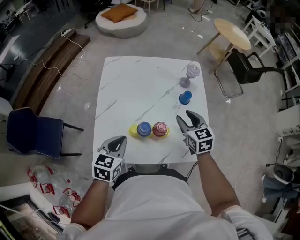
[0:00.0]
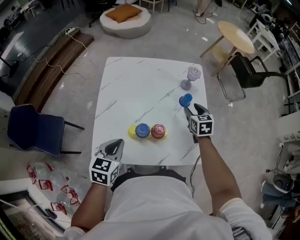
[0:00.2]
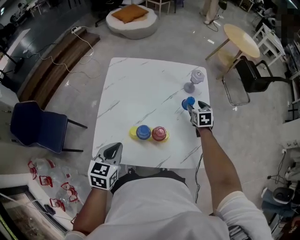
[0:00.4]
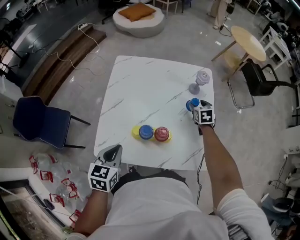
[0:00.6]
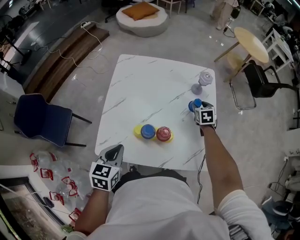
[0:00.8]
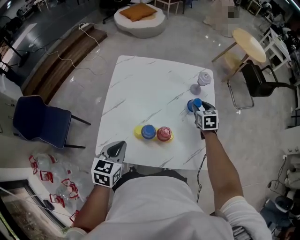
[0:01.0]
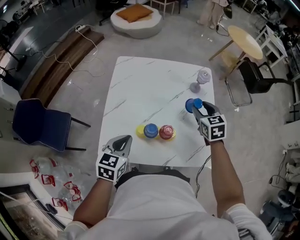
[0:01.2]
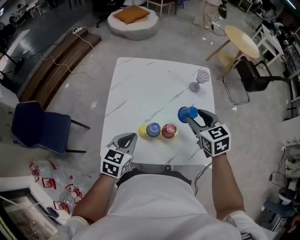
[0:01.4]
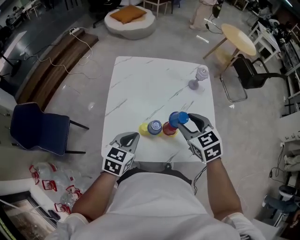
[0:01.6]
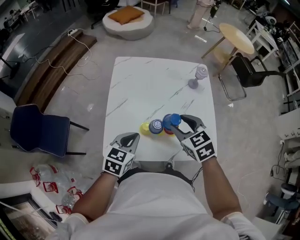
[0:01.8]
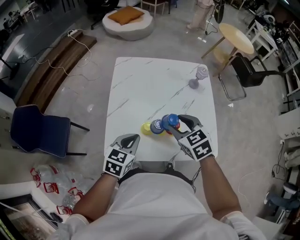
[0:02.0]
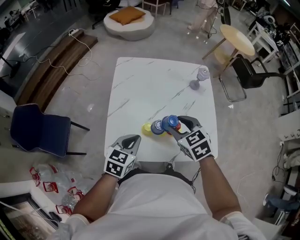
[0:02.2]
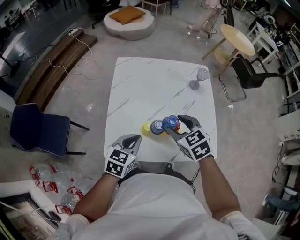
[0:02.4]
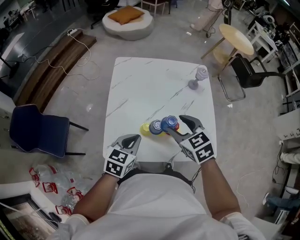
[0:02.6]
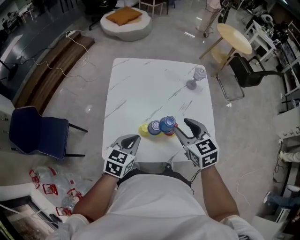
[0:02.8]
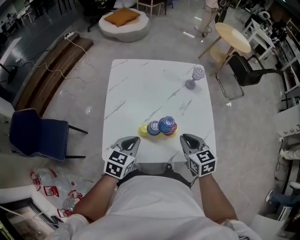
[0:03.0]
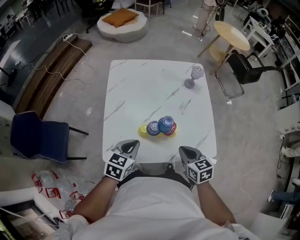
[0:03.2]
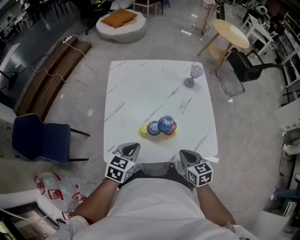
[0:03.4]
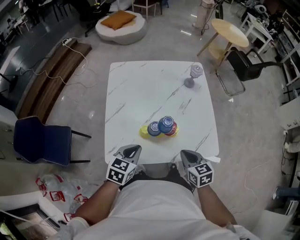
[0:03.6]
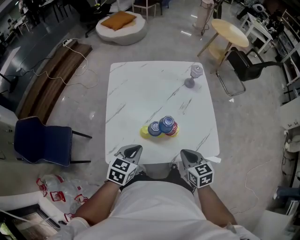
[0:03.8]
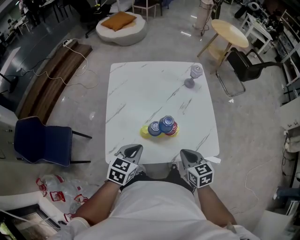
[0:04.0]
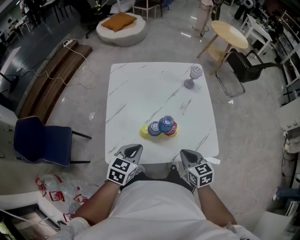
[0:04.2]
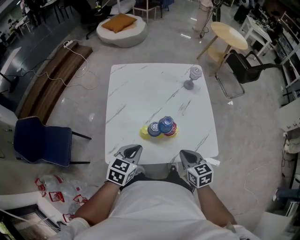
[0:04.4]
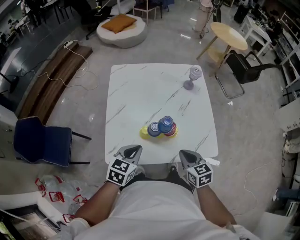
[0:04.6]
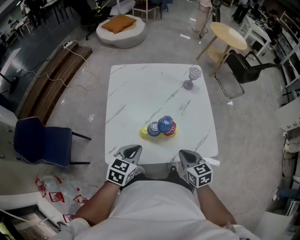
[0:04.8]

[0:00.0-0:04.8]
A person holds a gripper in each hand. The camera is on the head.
0:00.0 to 0:01.6: The right gripper is displaced to the left and upward by about 10 cm, and travels forward and back again, roughly 15 cm each way.
0:01.6 to 0:03.2: The right gripper travels backward and downward by about 15 cm, rotates about 20 degrees, and closes up.
0:03.2 to 0:04.8: There are only small adjustments of the grippers.

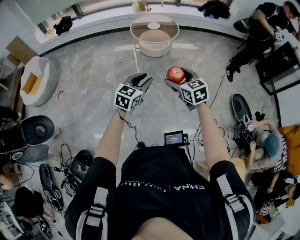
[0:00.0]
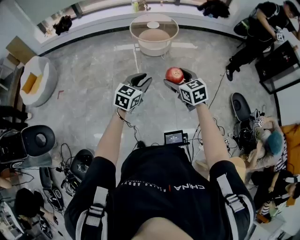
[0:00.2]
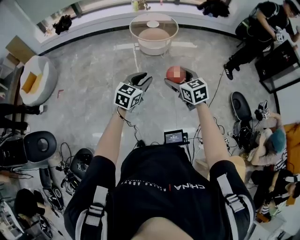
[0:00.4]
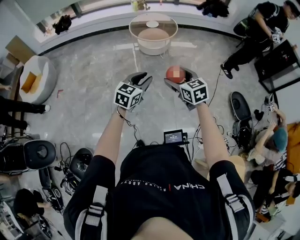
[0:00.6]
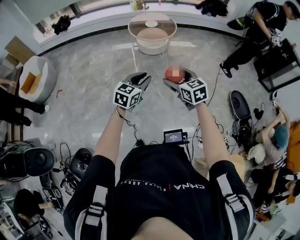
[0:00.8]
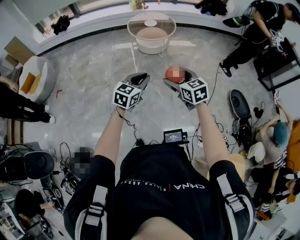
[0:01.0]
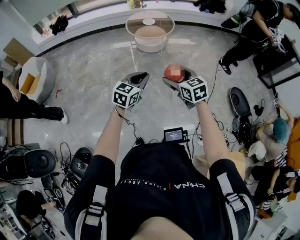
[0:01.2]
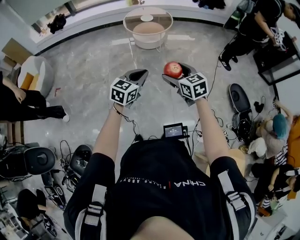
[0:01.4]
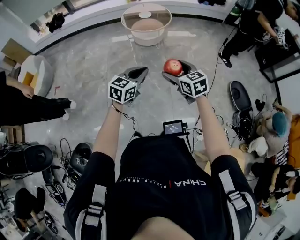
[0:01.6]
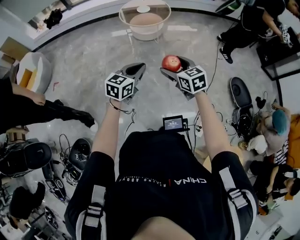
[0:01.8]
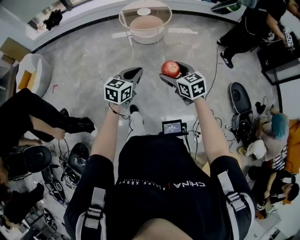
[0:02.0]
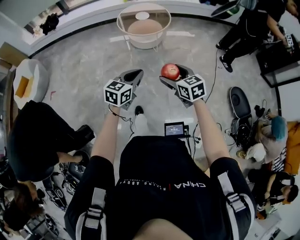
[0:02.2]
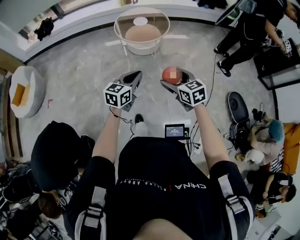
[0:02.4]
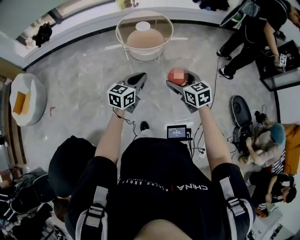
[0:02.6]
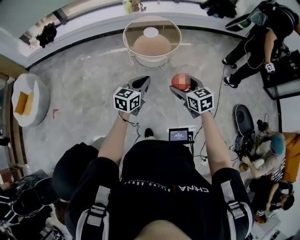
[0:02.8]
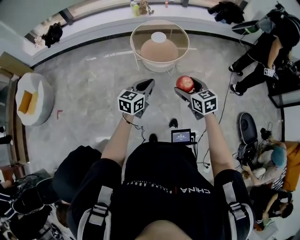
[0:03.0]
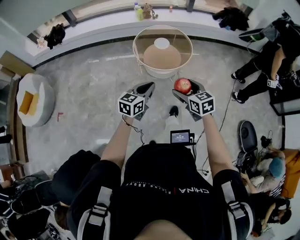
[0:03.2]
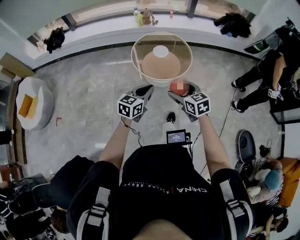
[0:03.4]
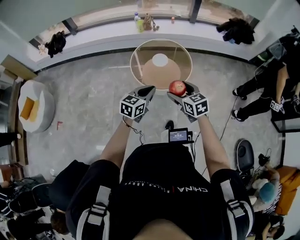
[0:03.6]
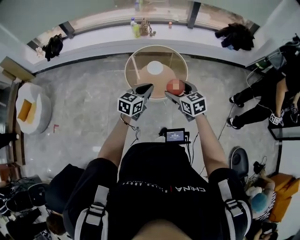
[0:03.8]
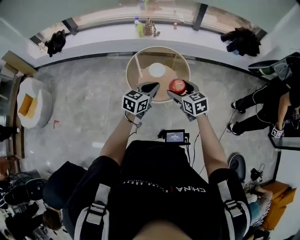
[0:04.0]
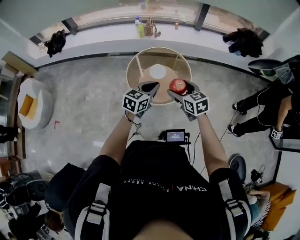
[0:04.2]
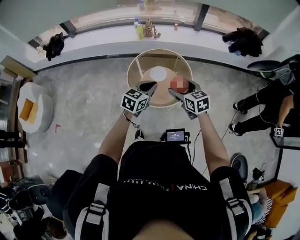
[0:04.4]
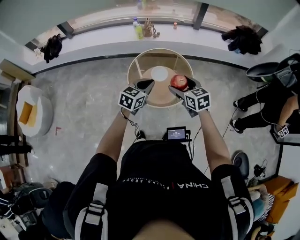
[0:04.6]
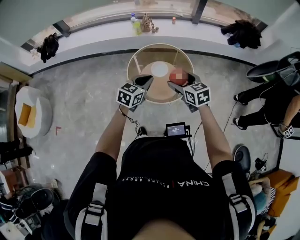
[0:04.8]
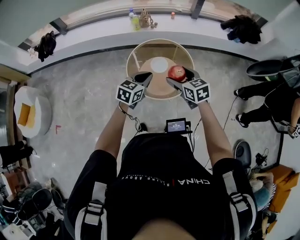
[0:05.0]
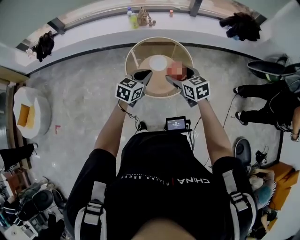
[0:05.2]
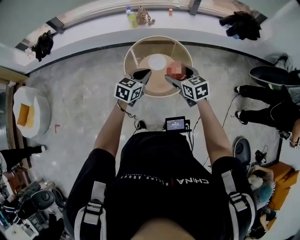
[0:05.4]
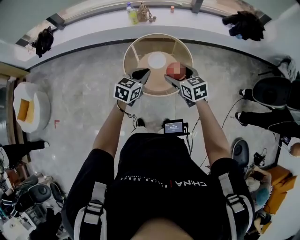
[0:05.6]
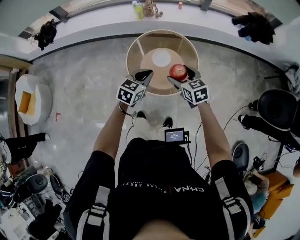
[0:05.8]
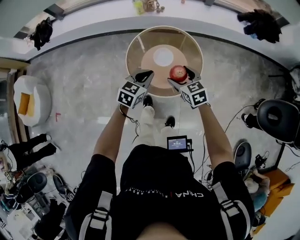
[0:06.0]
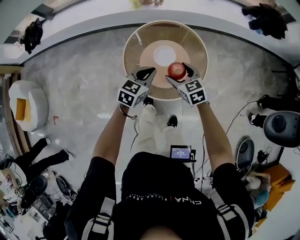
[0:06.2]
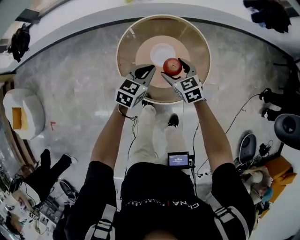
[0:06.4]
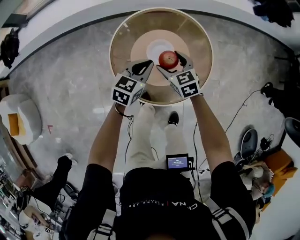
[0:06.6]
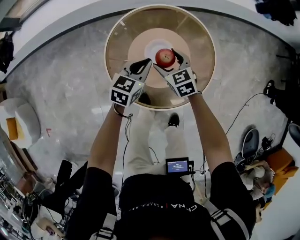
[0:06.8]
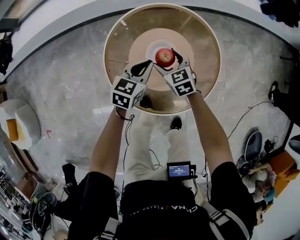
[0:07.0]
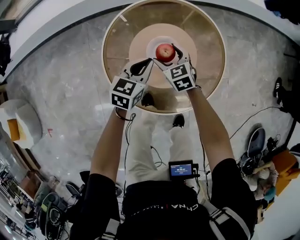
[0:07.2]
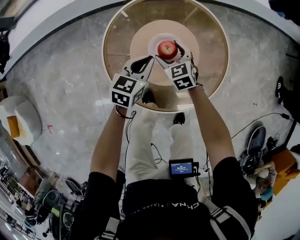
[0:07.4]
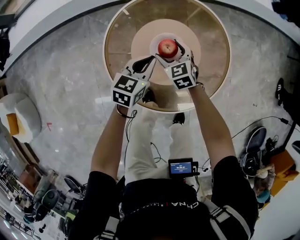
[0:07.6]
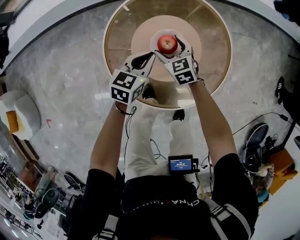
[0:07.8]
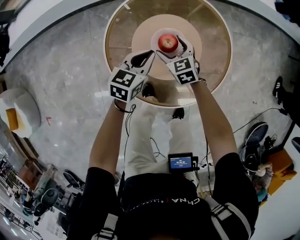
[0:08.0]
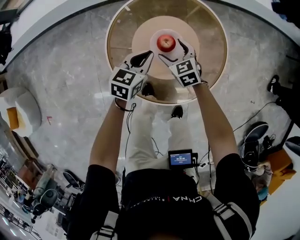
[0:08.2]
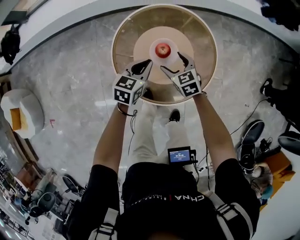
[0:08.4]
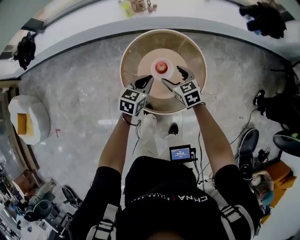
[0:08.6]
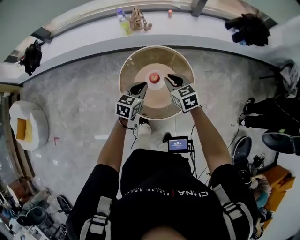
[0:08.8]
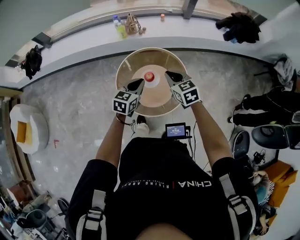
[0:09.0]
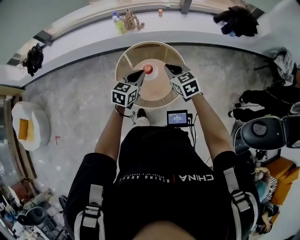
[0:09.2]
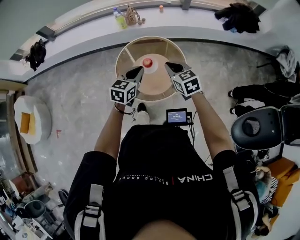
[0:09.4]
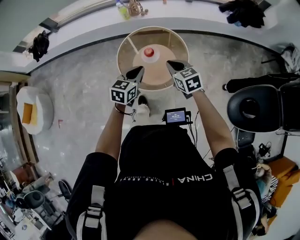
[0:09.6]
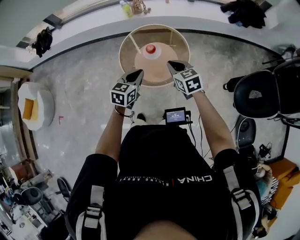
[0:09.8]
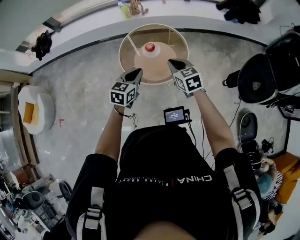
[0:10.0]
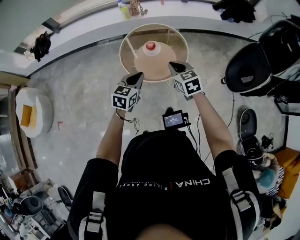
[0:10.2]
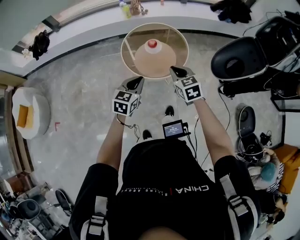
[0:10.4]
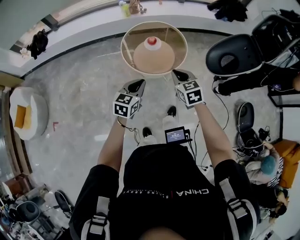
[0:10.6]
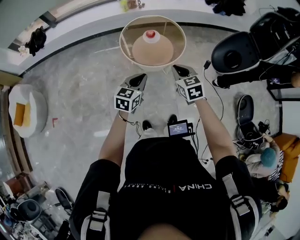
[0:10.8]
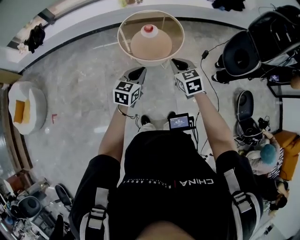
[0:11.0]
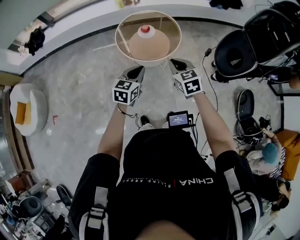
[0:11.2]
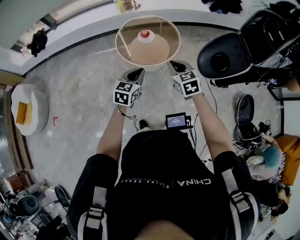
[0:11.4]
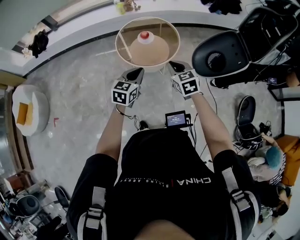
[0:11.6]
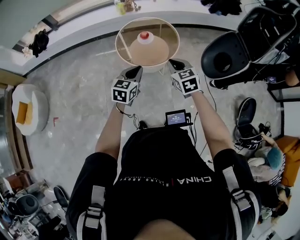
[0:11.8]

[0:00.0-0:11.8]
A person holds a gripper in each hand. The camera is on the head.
0:00.0 to 0:01.4: The right gripper changes place by some 5 cm, while the left gripper changes place by approximately 5 cm, and closes up.
0:01.4 to 0:03.0: The two grippers travel together, forward, some 50 cm.
0:03.0 to 0:04.4: Both grippers are carried forward, roughly 50 cm.
0:04.4 to 0:06.0: The left gripper heads forward and downward, covering roughly 15 cm; the right gripper shifts approximately 20 cm downward and forward.
0:06.0 to 0:07.4: Both grippers move downward and forward, about 40 cm.
0:07.4 to 0:08.8: Both grippers travel together upward, roughly 40 cm. The right gripper closes.
0:08.8 to 0:10.4: Both grippers are carried backward, some 40 cm.
0:10.4 to 0:11.8: The left gripper swings forward and backward, roughly 10 cm each way, with 2 reversals. Meanwhile the right gripper swings forward and backward, some 10 cm each way, with 2 reversals.

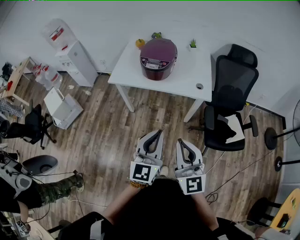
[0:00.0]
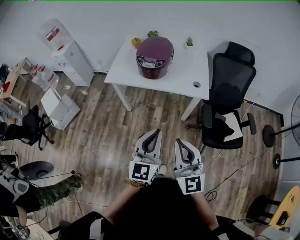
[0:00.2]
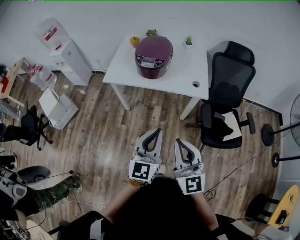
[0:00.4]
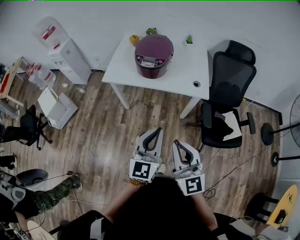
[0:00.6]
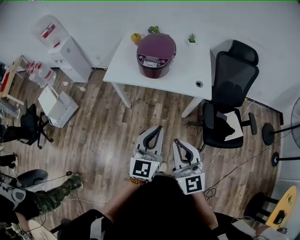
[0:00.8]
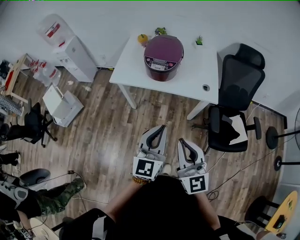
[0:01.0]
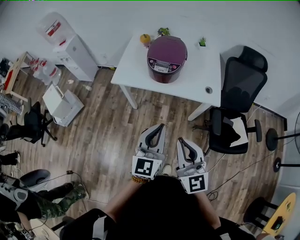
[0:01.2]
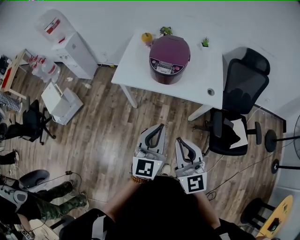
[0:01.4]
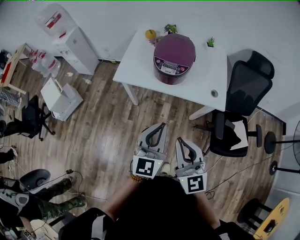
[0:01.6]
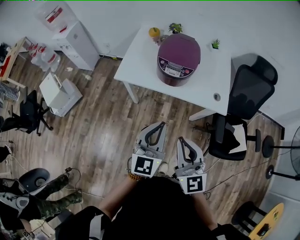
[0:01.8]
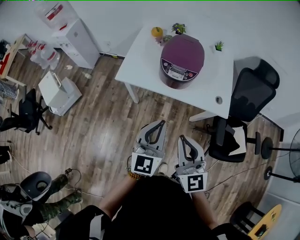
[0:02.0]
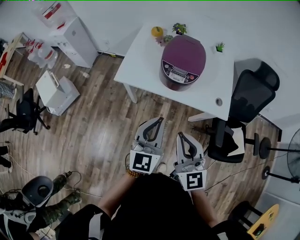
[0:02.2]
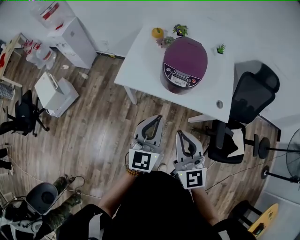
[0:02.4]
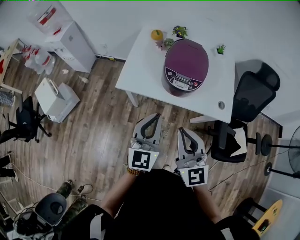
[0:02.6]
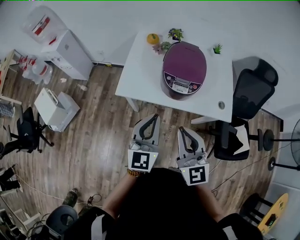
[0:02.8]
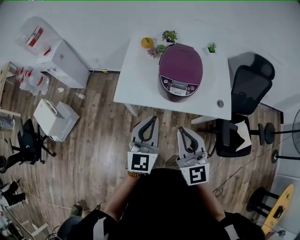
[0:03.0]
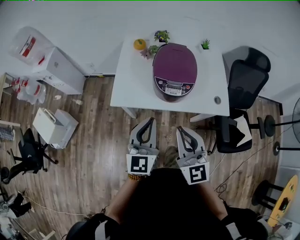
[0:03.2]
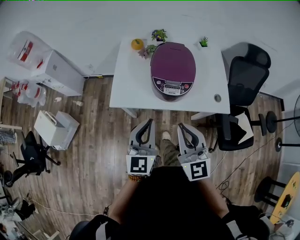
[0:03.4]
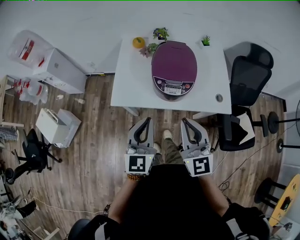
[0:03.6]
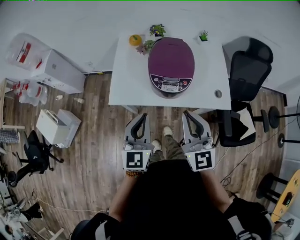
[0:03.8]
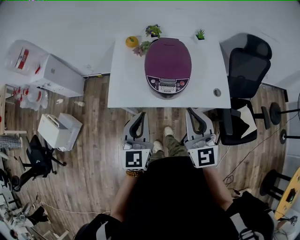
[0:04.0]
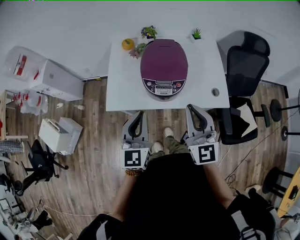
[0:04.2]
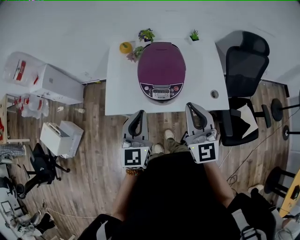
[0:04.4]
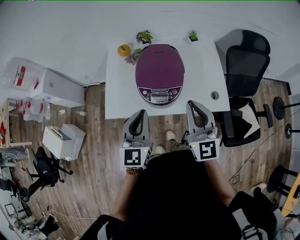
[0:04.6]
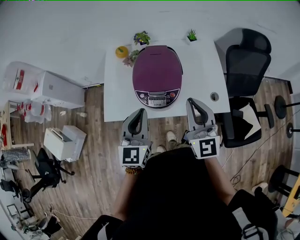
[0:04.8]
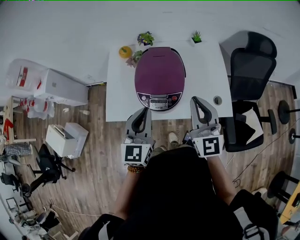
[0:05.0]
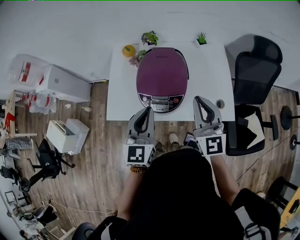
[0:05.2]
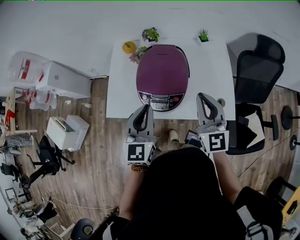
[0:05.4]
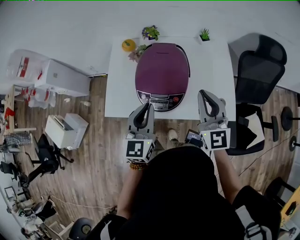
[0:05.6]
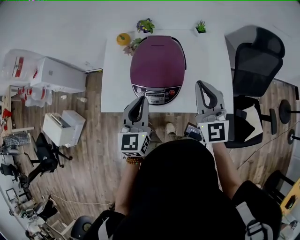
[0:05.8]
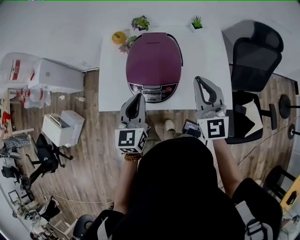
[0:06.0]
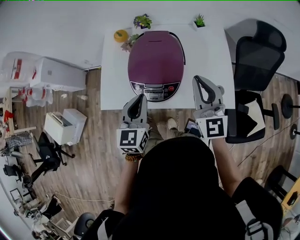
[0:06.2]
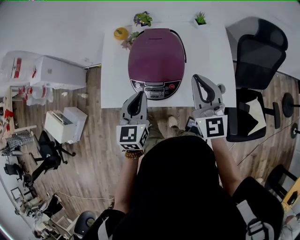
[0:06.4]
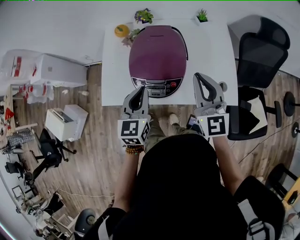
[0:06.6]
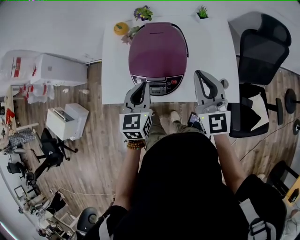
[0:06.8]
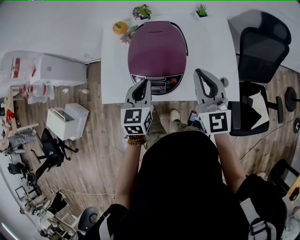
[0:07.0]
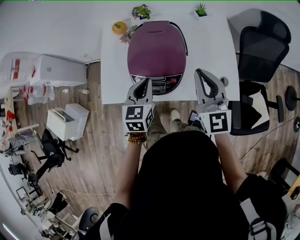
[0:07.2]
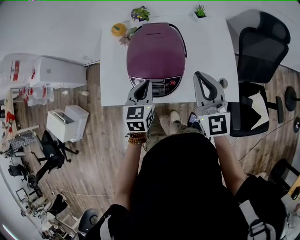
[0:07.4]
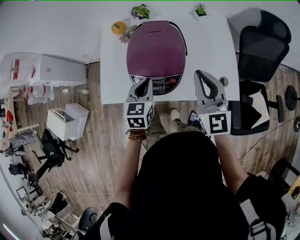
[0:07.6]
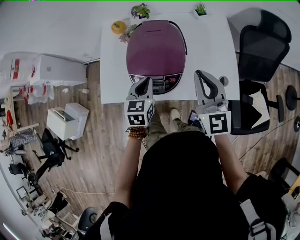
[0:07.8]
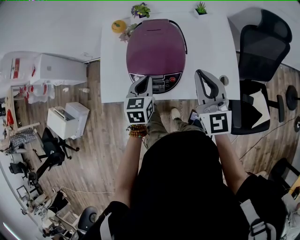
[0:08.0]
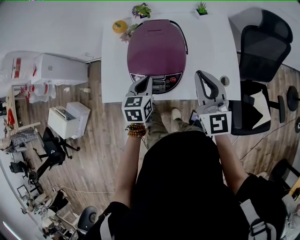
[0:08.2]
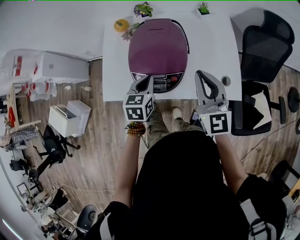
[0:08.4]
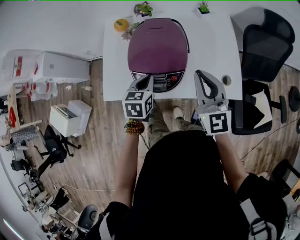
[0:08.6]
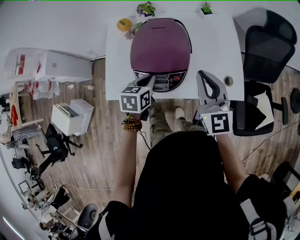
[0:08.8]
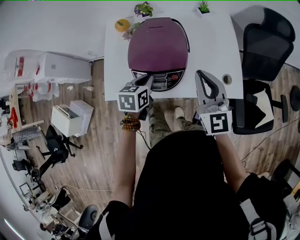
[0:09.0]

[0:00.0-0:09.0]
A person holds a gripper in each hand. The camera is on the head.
0:00.0 to 0:01.6: The two grippers go roughly 20 cm forward and to the left.
0:01.6 to 0:03.0: Both grippers move forward and to the left, approximately 20 cm.
0:03.0 to 0:04.4: The right gripper travels to the right and forward by approximately 15 cm; the left gripper shifts about 10 cm forward.
0:04.4 to 0:06.0: The left gripper goes about 15 cm forward, downward and to the right; the right gripper goes some 15 cm forward and to the right.
0:06.0 to 0:07.6: The left gripper shifts some 10 cm downward.
0:07.6 to 0:09.0: There are only small adjustments of the grippers.
